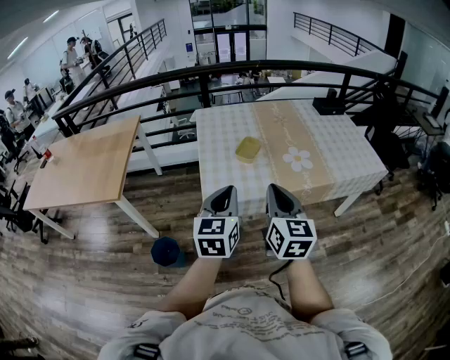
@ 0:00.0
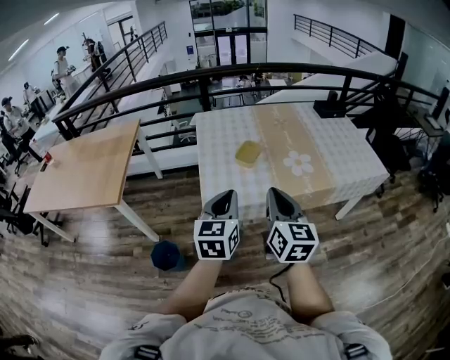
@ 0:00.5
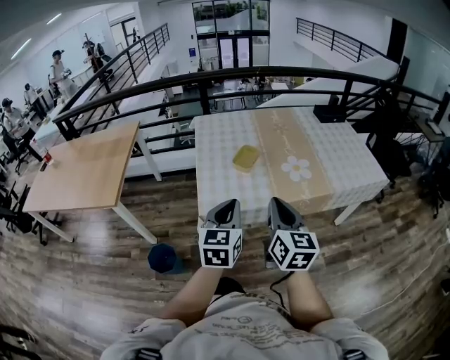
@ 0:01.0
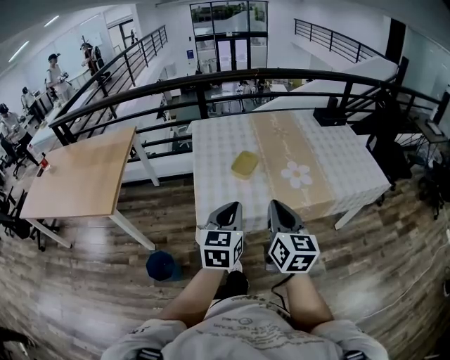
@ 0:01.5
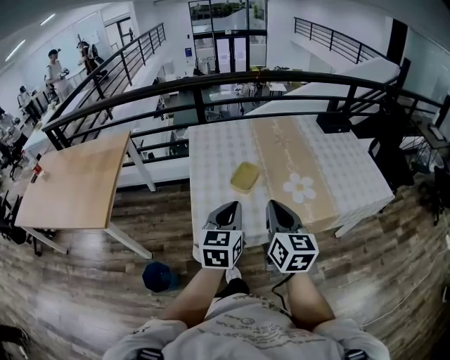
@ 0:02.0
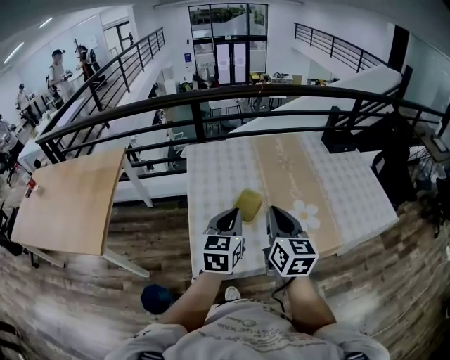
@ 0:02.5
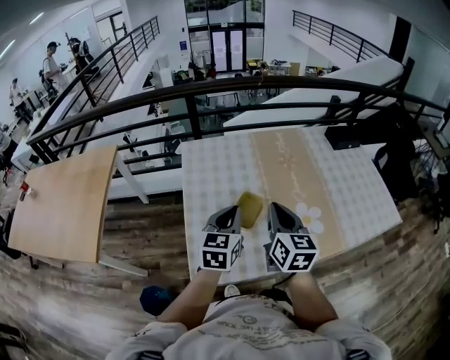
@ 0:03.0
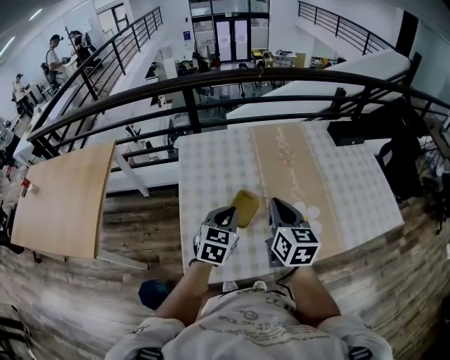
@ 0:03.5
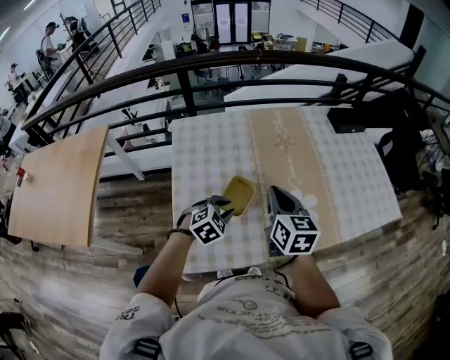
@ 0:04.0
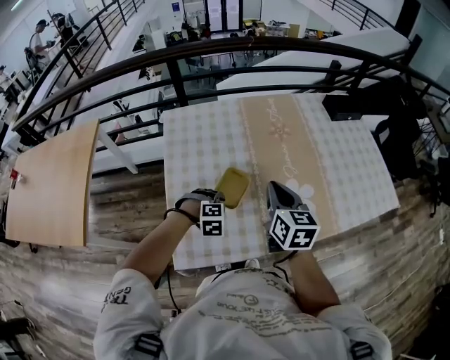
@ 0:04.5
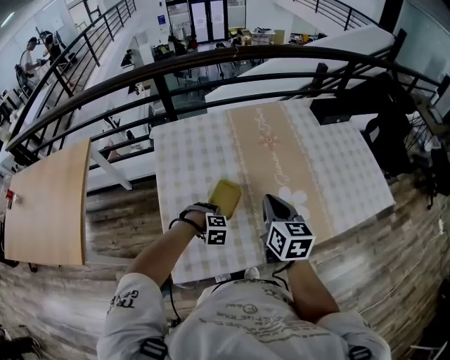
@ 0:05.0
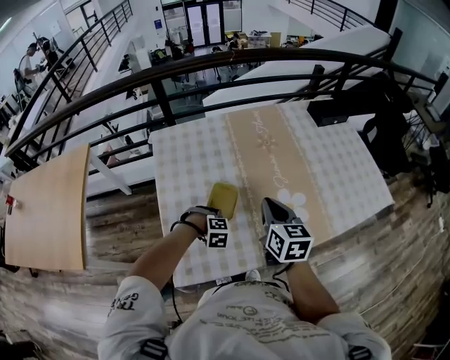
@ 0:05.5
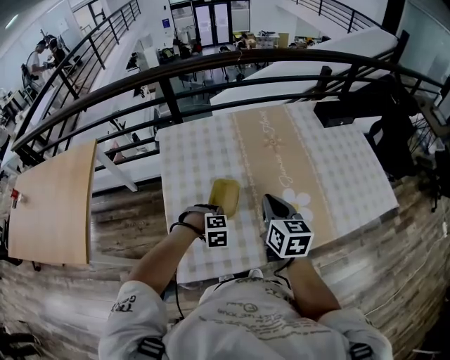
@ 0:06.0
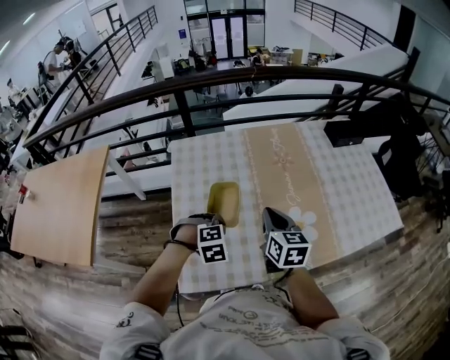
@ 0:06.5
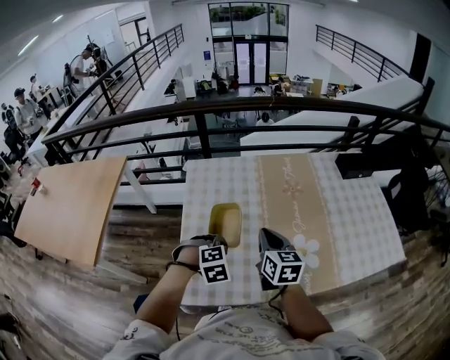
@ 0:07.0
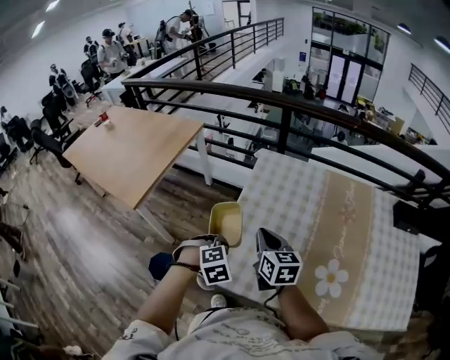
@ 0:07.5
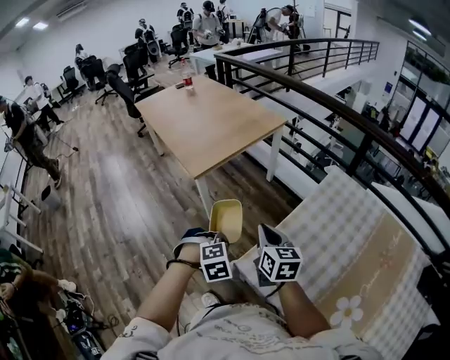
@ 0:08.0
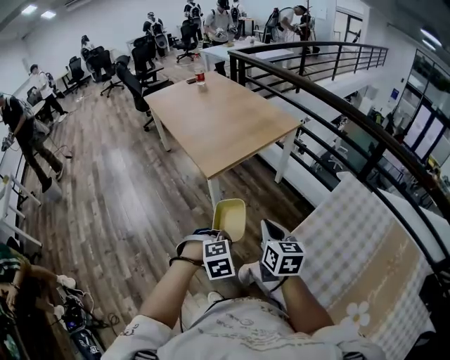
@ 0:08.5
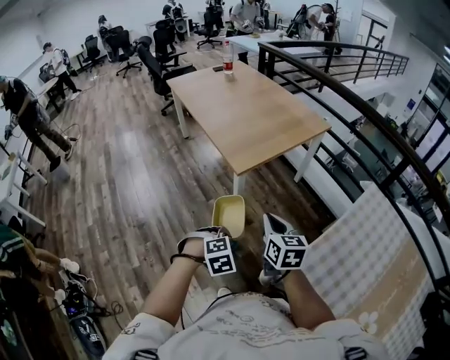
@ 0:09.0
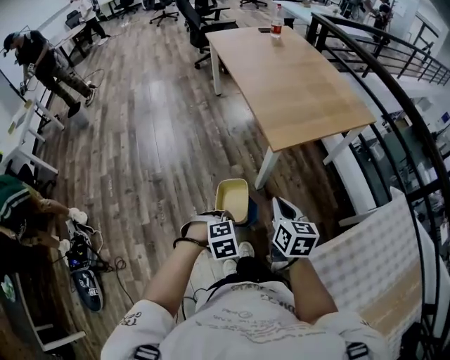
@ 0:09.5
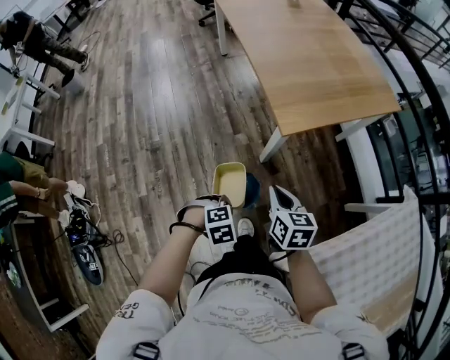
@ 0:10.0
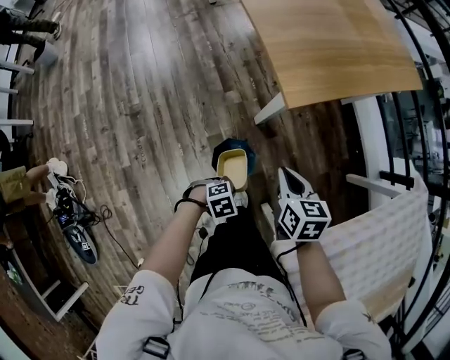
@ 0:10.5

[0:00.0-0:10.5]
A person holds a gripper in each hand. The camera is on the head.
0:00.0 to 0:02.0: The two grippers go approximately 15 cm forward.
0:02.0 to 0:04.0: The right gripper travels forward by roughly 25 cm. The left gripper shifts approximately 30 cm forward and downward, and tilts its fingers some 40 degrees downward.
0:04.0 to 0:06.5: The left gripper goes downward and returns, about 15 cm each way, and turns by some 30 degrees.
0:06.5 to 0:08.5: Both grippers are carried roughly 40 cm. The left gripper rotates around the line of its fingers by about 60 degrees, counterclockwise from behind. Meanwhile the right gripper rotates some 60 degrees.
0:08.5 to 0:10.5: The right gripper moves approximately 40 cm, and turns by approximately 30 degrees; the left gripper moves downward, approximately 35 cm, and changes its angle by about 40 degrees.

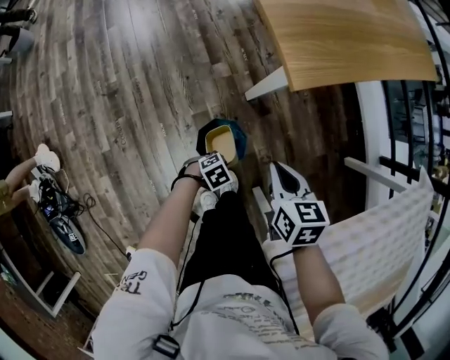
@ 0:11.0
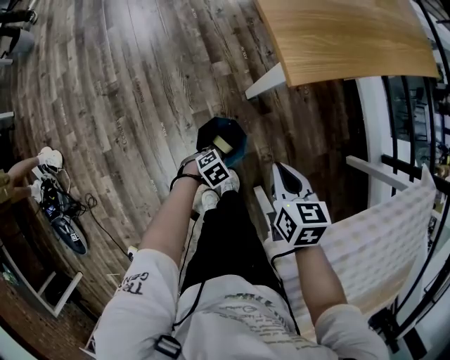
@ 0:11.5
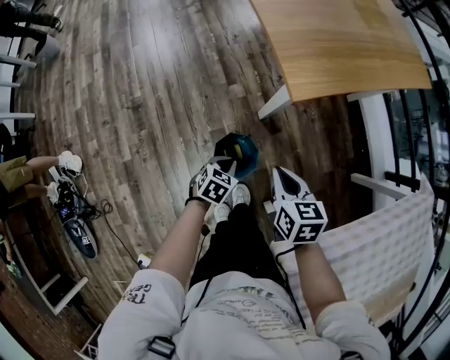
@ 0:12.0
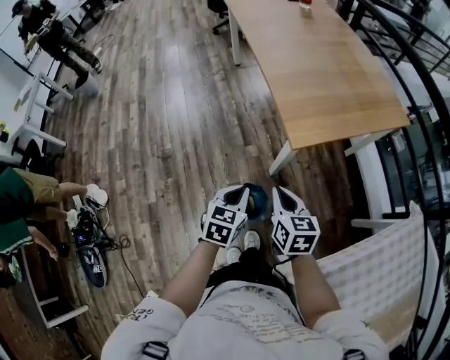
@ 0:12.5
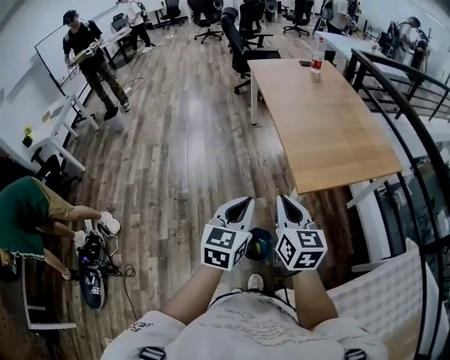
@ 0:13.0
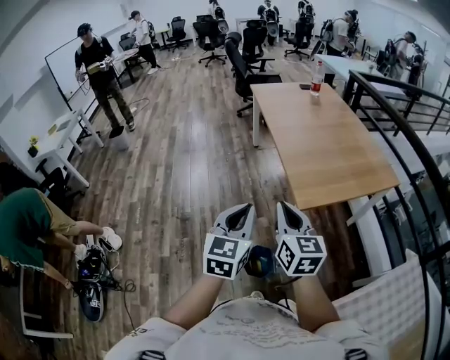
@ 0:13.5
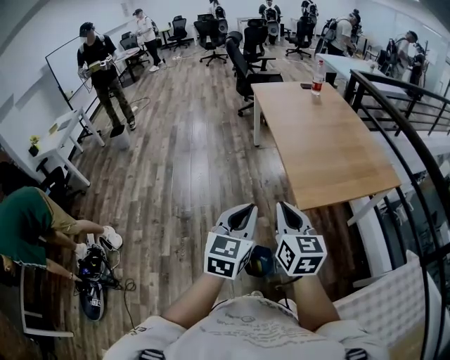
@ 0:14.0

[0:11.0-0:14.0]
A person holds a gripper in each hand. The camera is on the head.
0:11.0 to 0:12.5: The right gripper moves upward, approximately 20 cm. Meanwhile the left gripper goes approximately 40 cm upward, and turns by roughly 60 degrees.
0:12.5 to 0:14.0: The two grippers go some 25 cm upward. The right gripper swivels approximately 20 degrees. The left gripper turns by about 30 degrees.

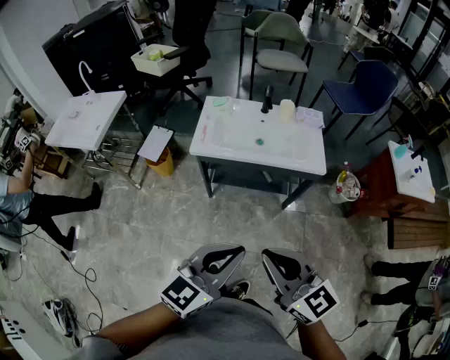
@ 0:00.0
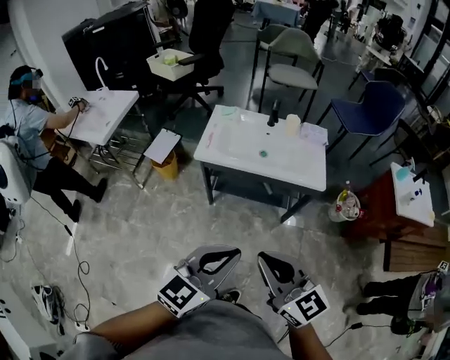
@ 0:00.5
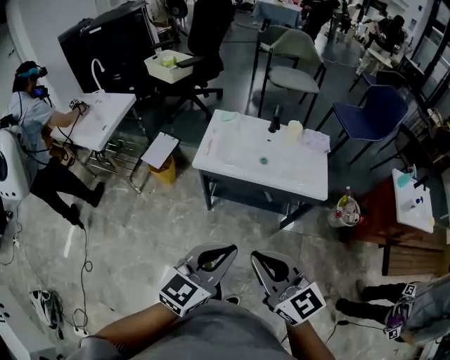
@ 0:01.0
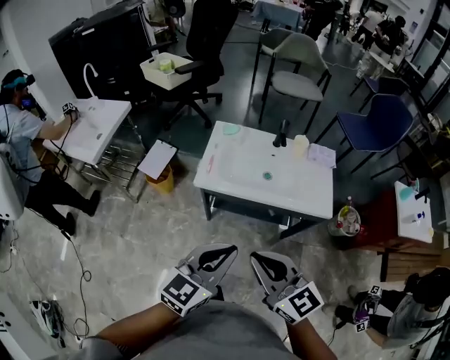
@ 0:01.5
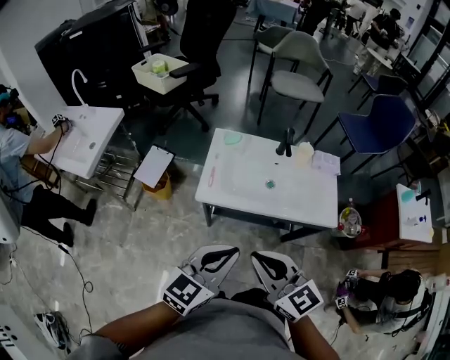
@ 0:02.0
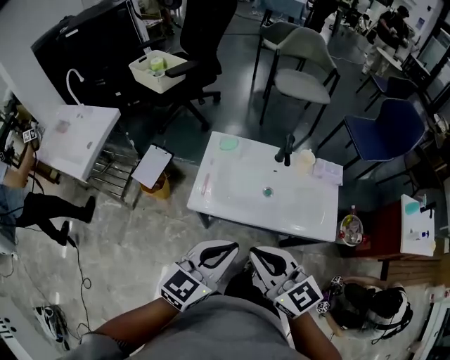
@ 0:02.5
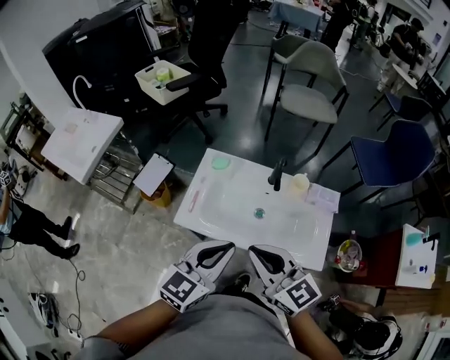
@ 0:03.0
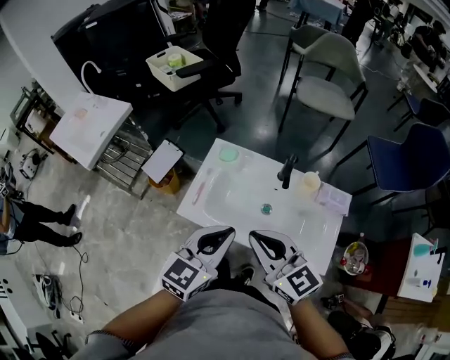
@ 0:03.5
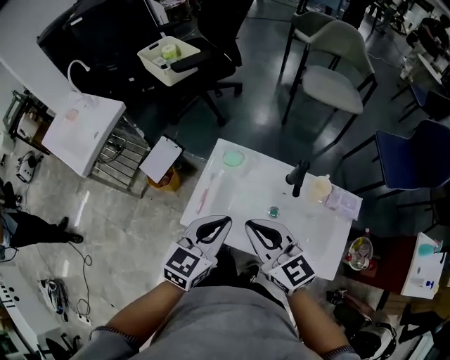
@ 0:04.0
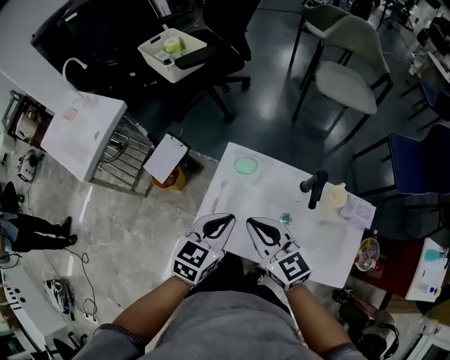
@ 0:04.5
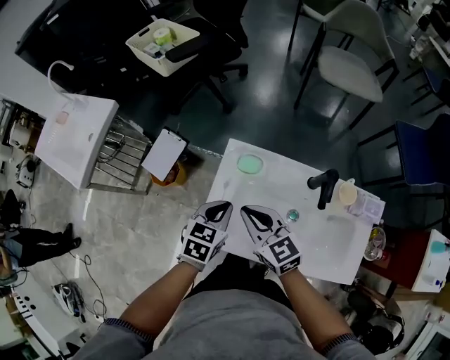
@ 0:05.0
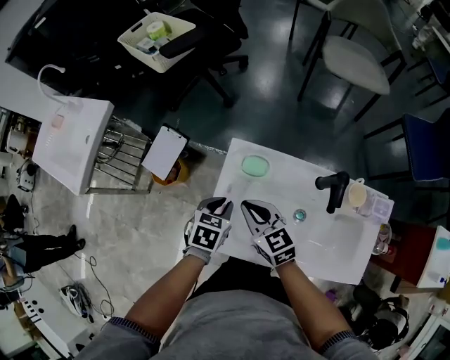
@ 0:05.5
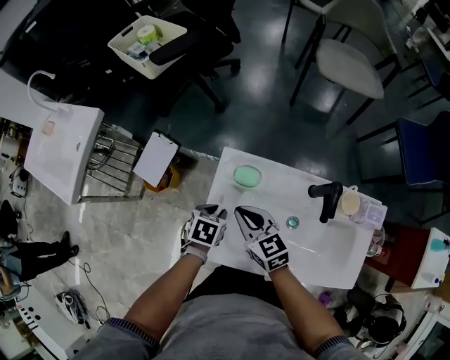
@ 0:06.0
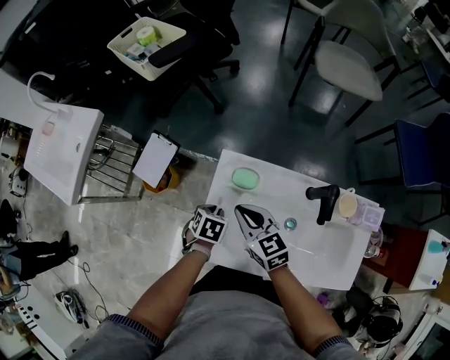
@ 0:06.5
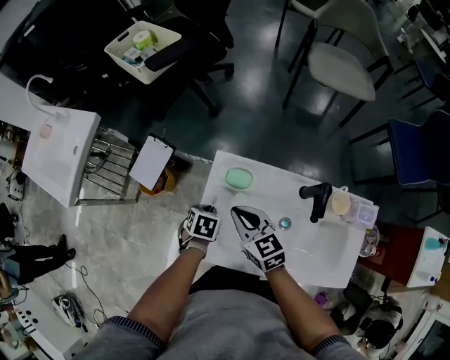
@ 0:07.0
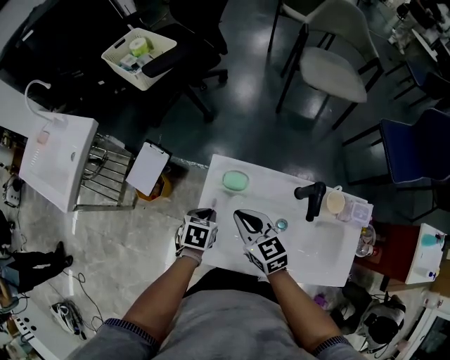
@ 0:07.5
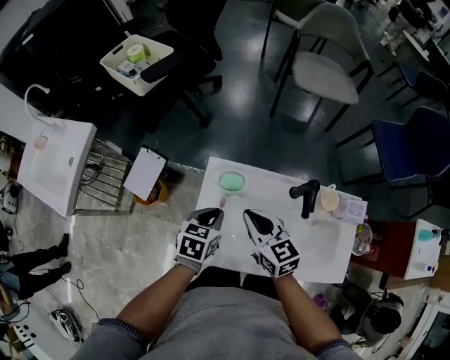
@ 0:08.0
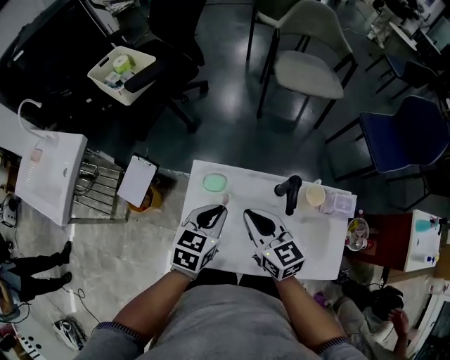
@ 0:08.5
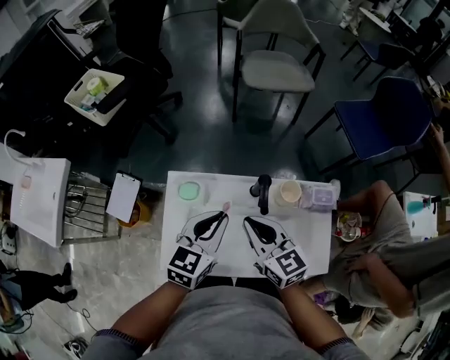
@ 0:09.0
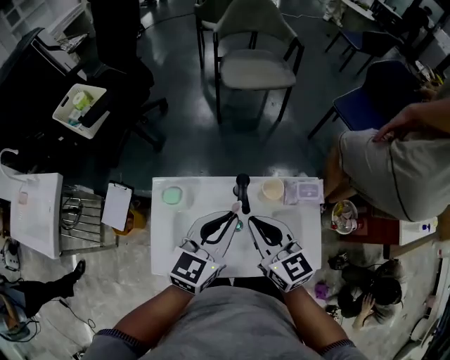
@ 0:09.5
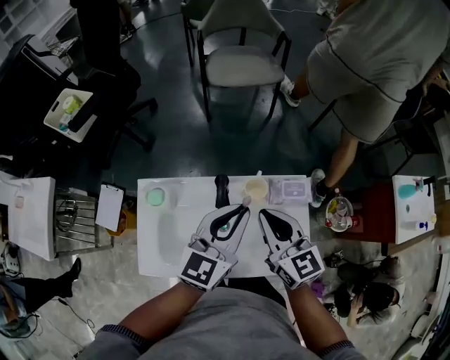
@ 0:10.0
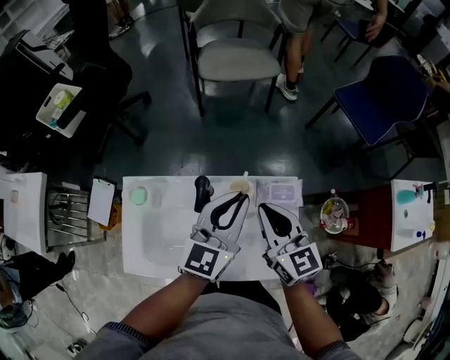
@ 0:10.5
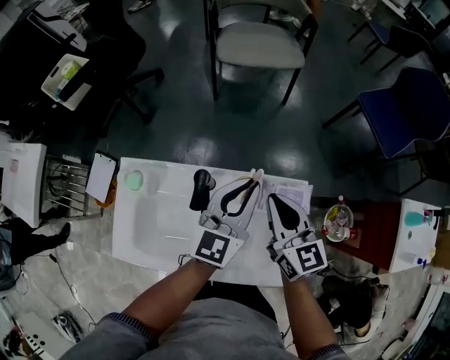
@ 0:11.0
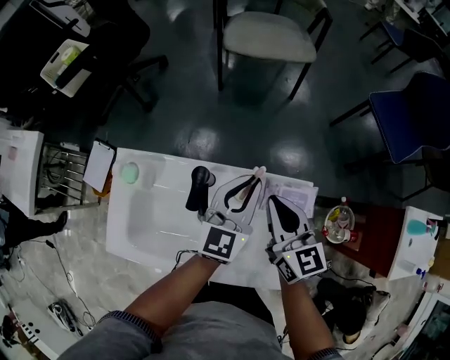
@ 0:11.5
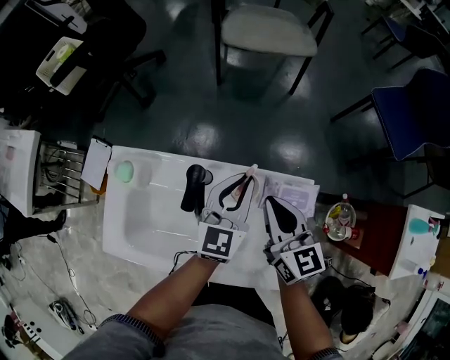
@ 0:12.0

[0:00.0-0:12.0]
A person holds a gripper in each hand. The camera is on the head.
0:00.0 to 0:02.0: The grippers both shift forward by roughly 20 cm.
0:02.0 to 0:04.0: Both grippers move forward, some 30 cm. The left gripper rotates about 20 degrees.
0:04.0 to 0:06.0: The left gripper travels downward and forward by about 30 cm, angles its fingers downward, by some 40 degrees, and opens. Meanwhile the right gripper heads downward, forward and to the left, covering approximately 25 cm.
0:06.0 to 0:08.0: The right gripper moves upward and to the right, about 10 cm. Meanwhile the left gripper is displaced upward by about 10 cm.
0:08.0 to 0:10.0: The left gripper shifts approximately 35 cm to the right and upward, and angles its fingers upward, by roughly 40 degrees. The right gripper shifts about 30 cm to the right, and rotates roughly 20 degrees.
0:10.0 to 0:12.0: The right gripper moves downward, to the right and forward, some 15 cm; the left gripper is displaced downward, forward and to the right by some 20 cm, and changes its angle by some 20 degrees.

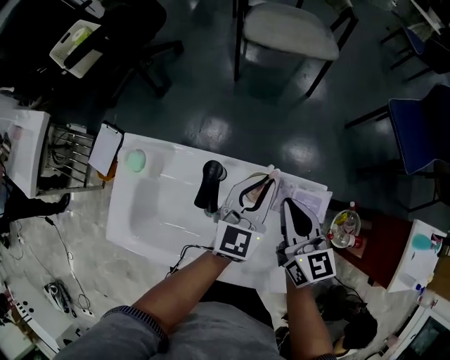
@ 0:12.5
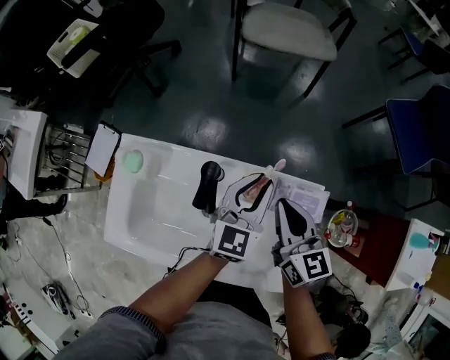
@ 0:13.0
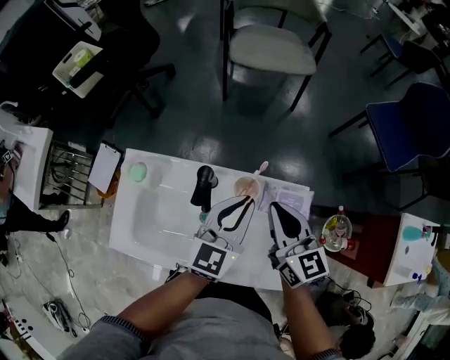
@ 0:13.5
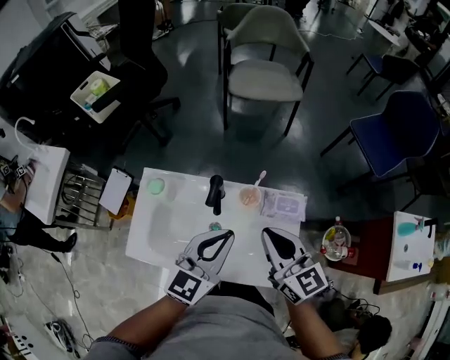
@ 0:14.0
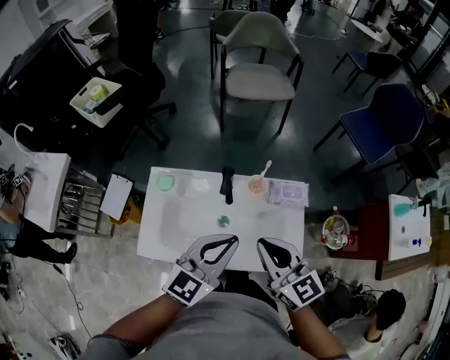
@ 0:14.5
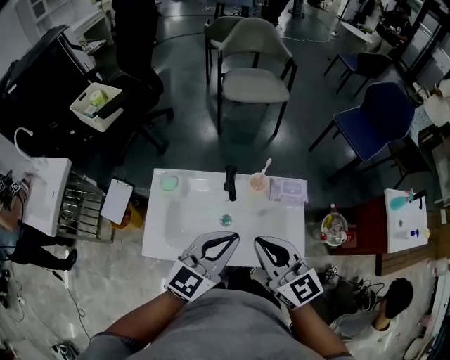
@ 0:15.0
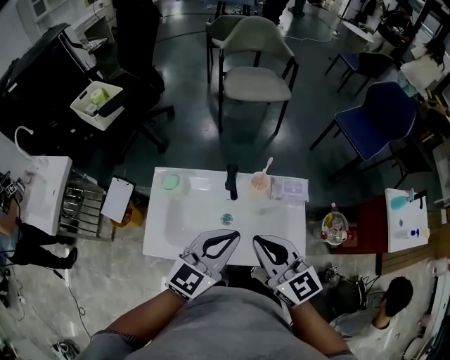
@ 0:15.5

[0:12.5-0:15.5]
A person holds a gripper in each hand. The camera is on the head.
0:12.5 to 0:14.0: The left gripper goes about 25 cm backward, upward and to the left; the right gripper goes approximately 20 cm upward and backward.
0:14.0 to 0:15.5: Both grippers move backward and to the left, some 10 cm.
